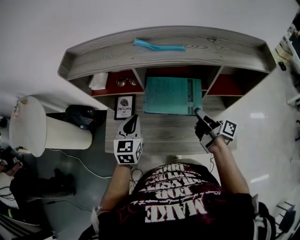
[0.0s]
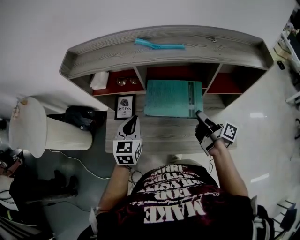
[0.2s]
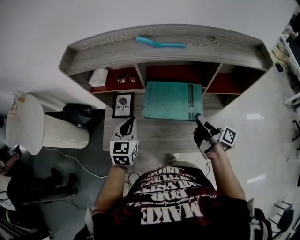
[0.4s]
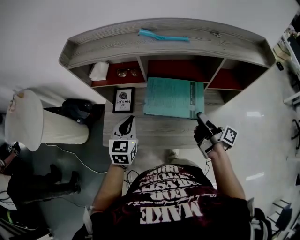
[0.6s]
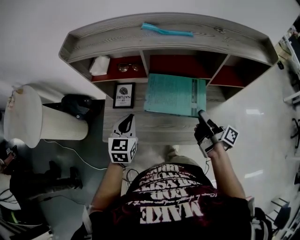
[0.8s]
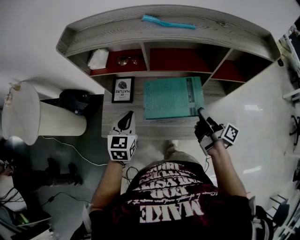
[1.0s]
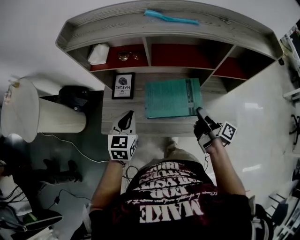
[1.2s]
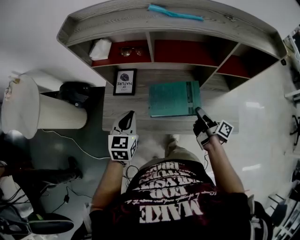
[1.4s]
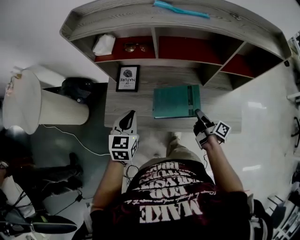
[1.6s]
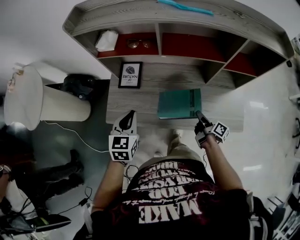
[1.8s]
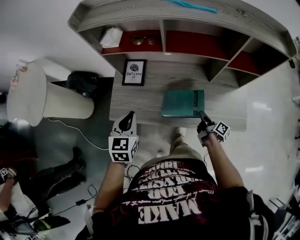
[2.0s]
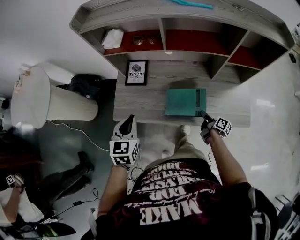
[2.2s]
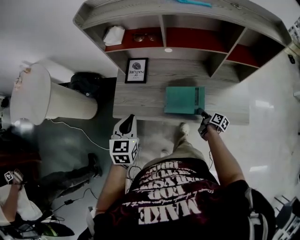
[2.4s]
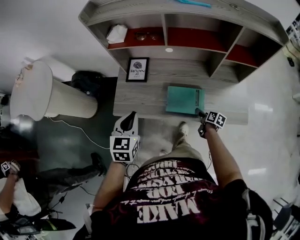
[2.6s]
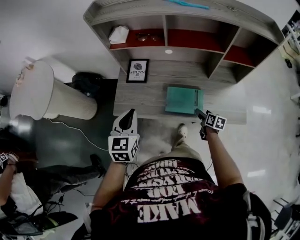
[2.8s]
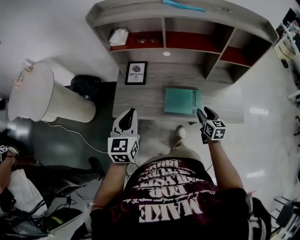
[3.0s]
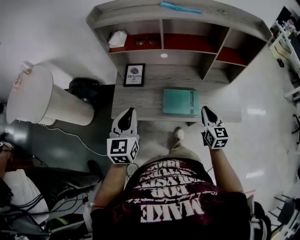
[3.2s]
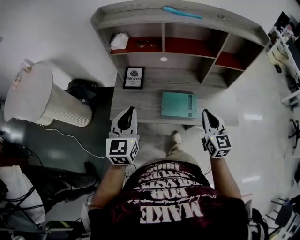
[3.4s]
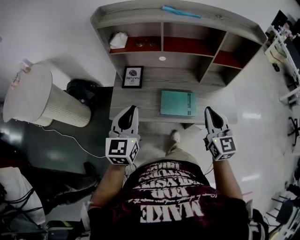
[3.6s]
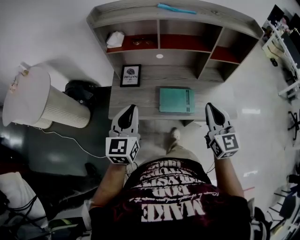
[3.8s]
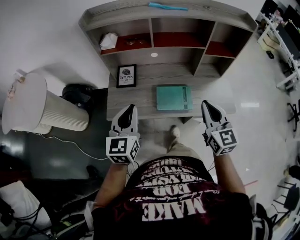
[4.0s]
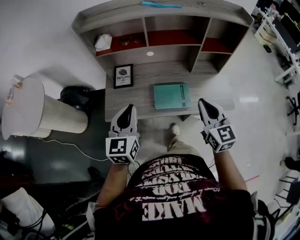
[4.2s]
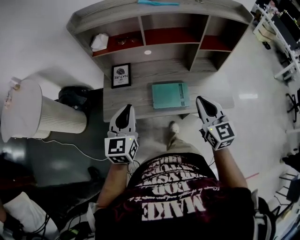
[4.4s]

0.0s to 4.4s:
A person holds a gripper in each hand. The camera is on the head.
0.0s to 1.4s: The right gripper shifts approximately 15 cm downward and backward. Meanwhile the left gripper travels backward, to the left and downward by some 10 cm.
1.4s to 3.0s: The right gripper moves backward, roughly 10 cm, goes downward and returns, about 20 cm each way, rotates around the line of its fingers by some 60 degrees, counterclockwise from behind, and opens and closes again; the left gripper travels backward, upward and to the left by about 15 cm.
3.0s to 4.4s: The right gripper goes approximately 20 cm upward, swivels some 30 degrees, and closes its fingers.

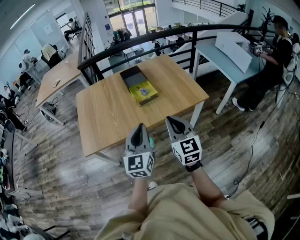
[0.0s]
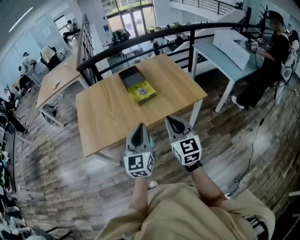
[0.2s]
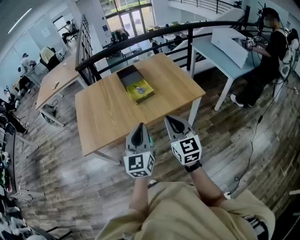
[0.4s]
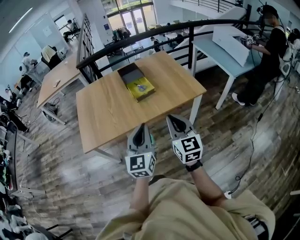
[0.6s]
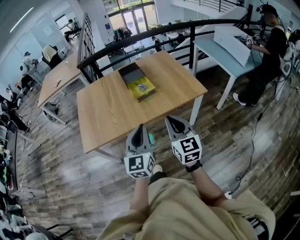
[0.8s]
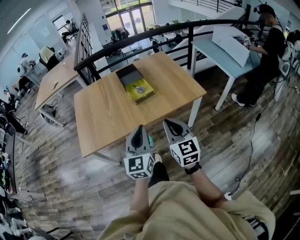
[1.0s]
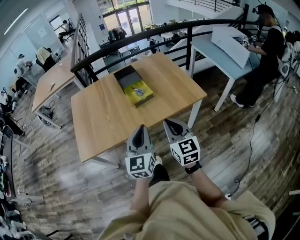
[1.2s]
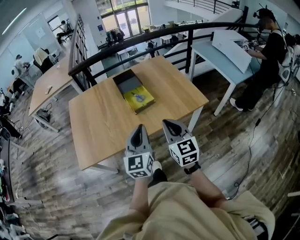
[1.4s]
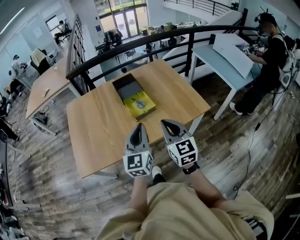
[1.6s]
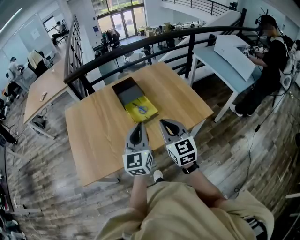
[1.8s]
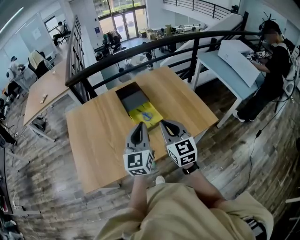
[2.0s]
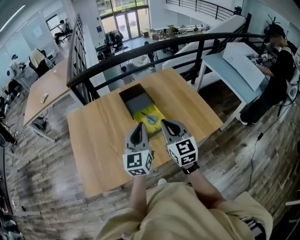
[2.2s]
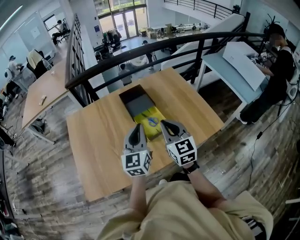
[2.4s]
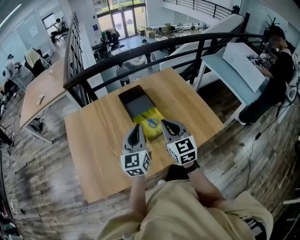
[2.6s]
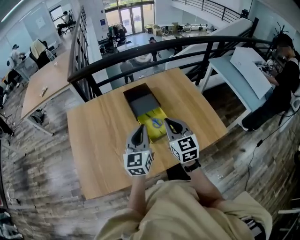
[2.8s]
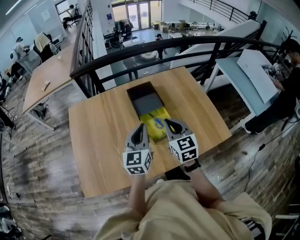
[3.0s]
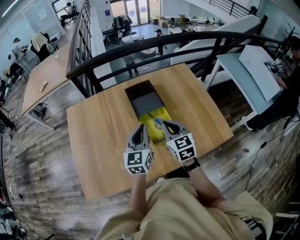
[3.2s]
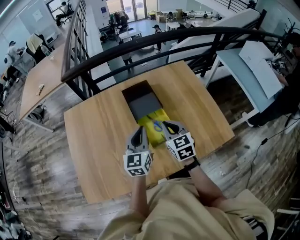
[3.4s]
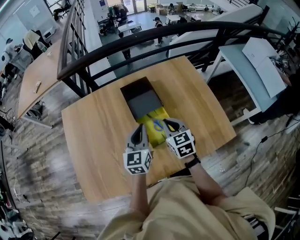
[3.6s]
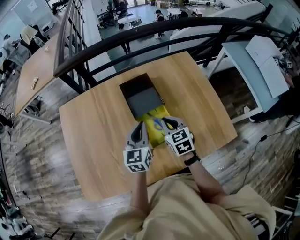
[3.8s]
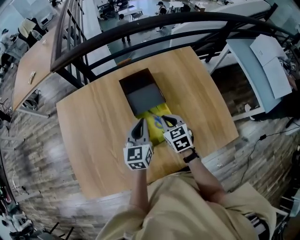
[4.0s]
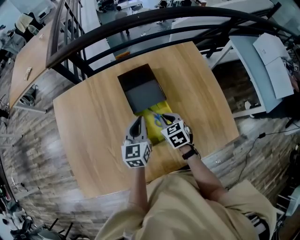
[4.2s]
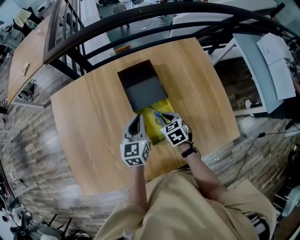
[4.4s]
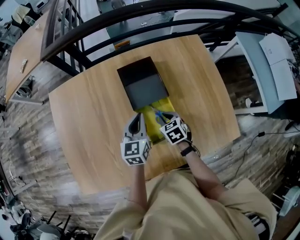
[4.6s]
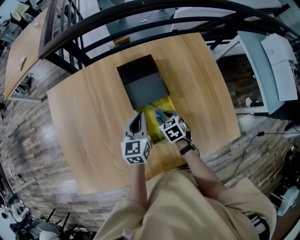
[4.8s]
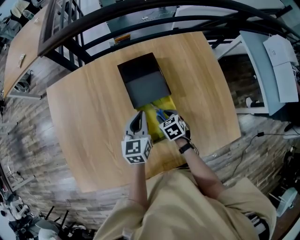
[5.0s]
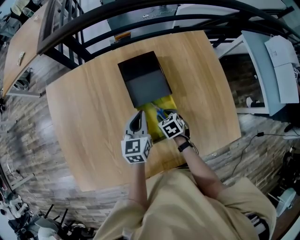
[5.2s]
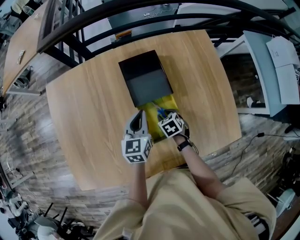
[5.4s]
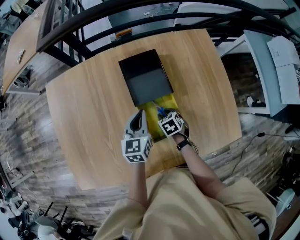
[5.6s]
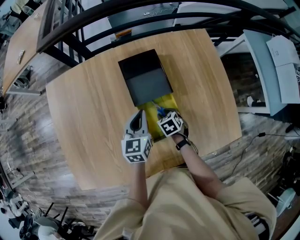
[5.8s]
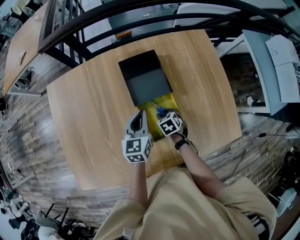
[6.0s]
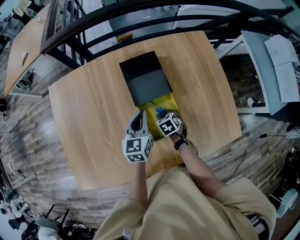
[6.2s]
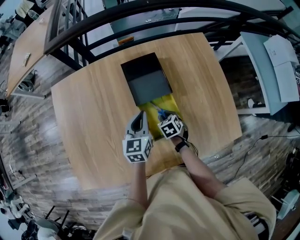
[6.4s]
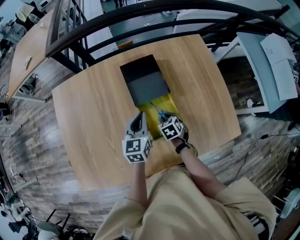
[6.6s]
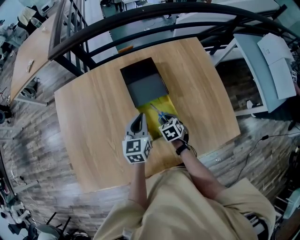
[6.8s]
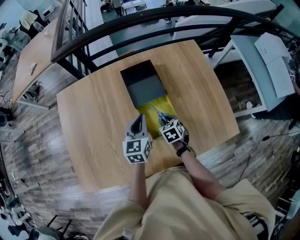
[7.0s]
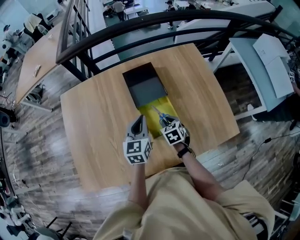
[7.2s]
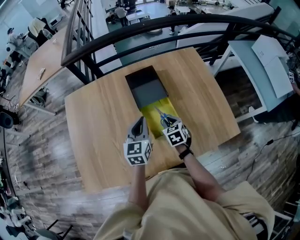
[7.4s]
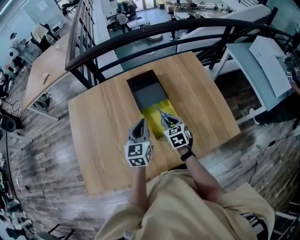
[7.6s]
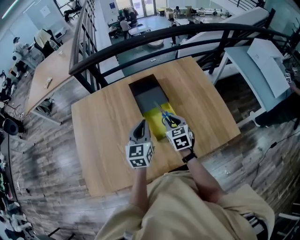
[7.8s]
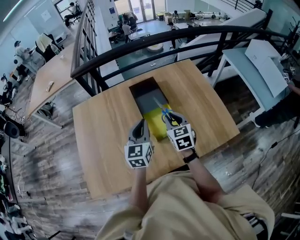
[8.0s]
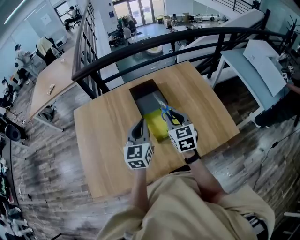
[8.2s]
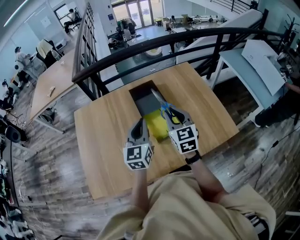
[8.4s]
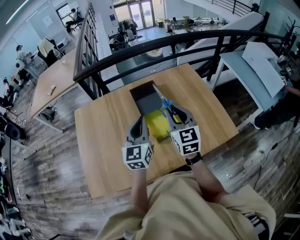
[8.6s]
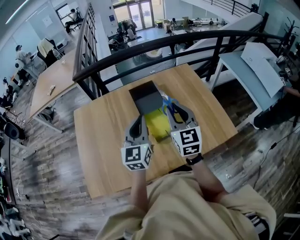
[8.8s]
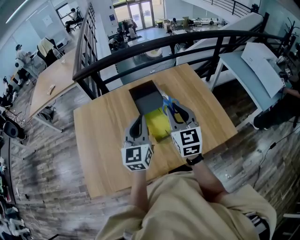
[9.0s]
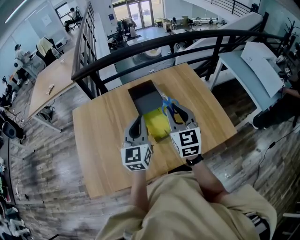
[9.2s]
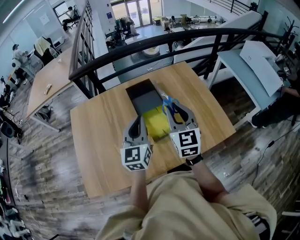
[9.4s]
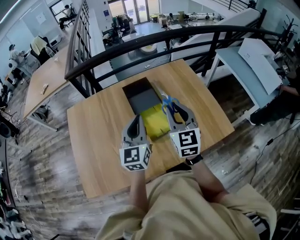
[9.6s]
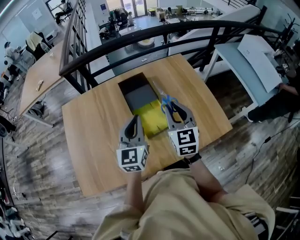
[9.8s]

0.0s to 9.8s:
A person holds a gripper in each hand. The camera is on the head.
0.0s to 1.4s: Both grippers travel together forward, approximately 10 cm.
1.4s to 2.8s: The two grippers go about 30 cm forward.
2.8s to 4.2s: The right gripper travels downward and forward by some 30 cm, and tips its fingers downward by approximately 40 degrees. The left gripper is displaced forward and downward by about 25 cm.
4.2s to 5.6s: The right gripper travels downward by approximately 15 cm, swivels some 20 degrees, and opens, while the left gripper moves downward, approximately 5 cm.
5.6s to 7.0s: The left gripper heads backward, covering about 5 cm. The right gripper shifts roughly 5 cm upward.
7.0s to 8.4s: The left gripper goes roughly 15 cm upward and backward, while the right gripper moves upward, roughly 30 cm, and points its fingers approximately 40 degrees further upward.

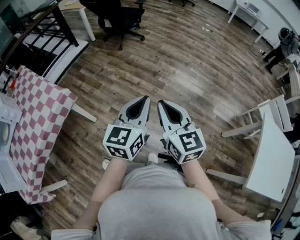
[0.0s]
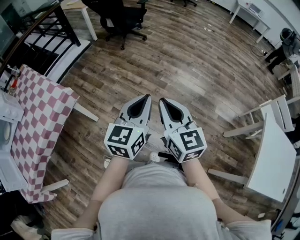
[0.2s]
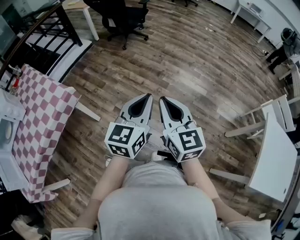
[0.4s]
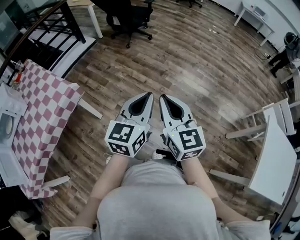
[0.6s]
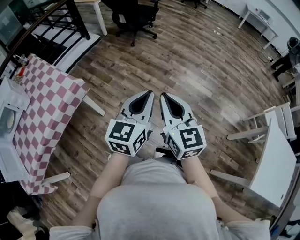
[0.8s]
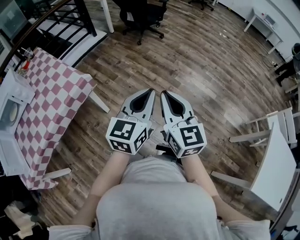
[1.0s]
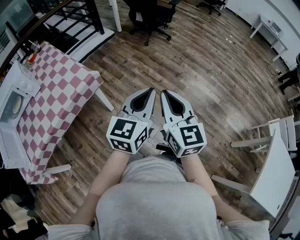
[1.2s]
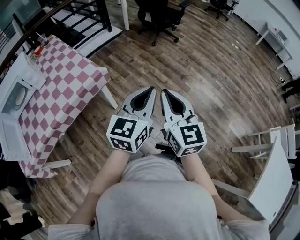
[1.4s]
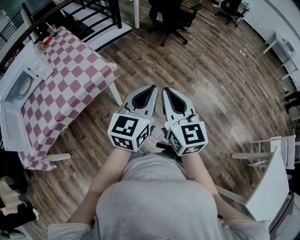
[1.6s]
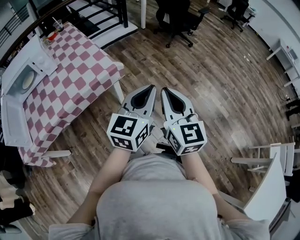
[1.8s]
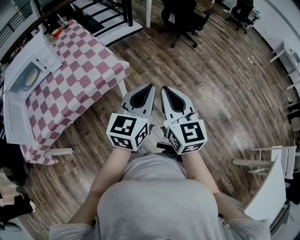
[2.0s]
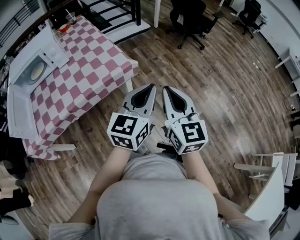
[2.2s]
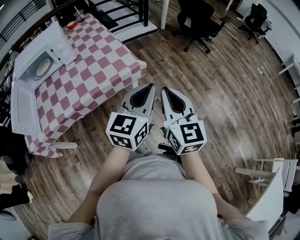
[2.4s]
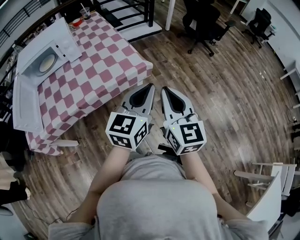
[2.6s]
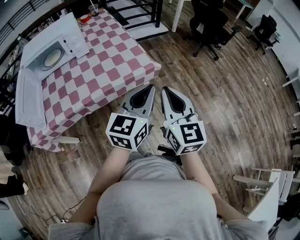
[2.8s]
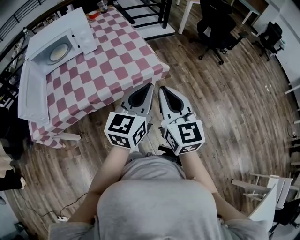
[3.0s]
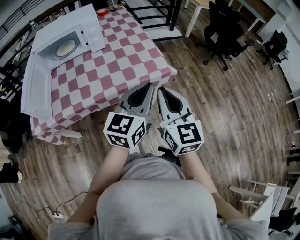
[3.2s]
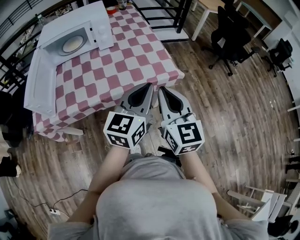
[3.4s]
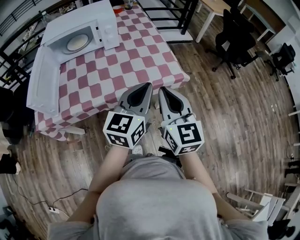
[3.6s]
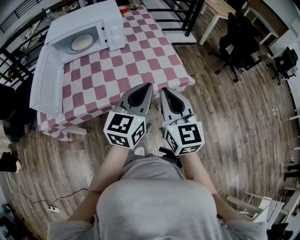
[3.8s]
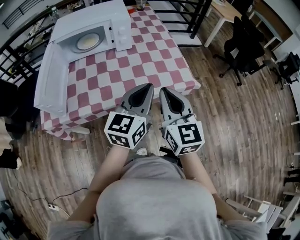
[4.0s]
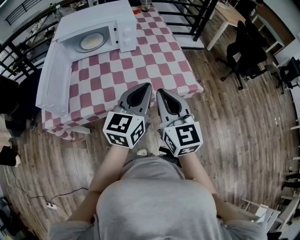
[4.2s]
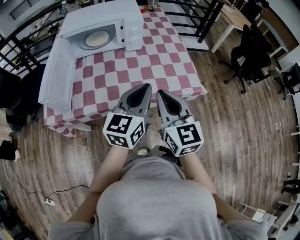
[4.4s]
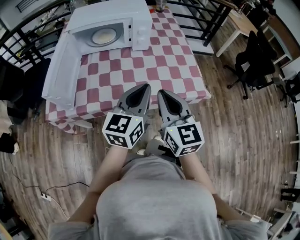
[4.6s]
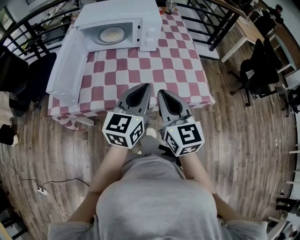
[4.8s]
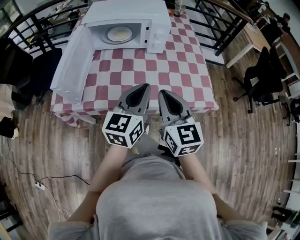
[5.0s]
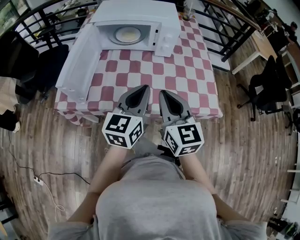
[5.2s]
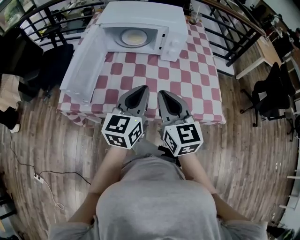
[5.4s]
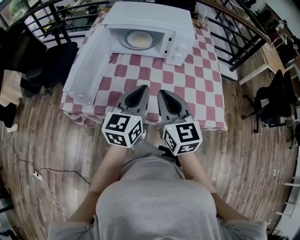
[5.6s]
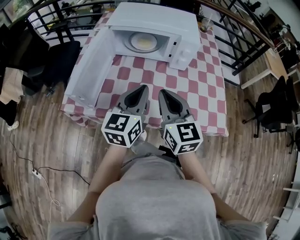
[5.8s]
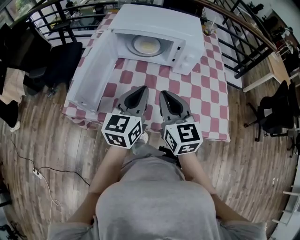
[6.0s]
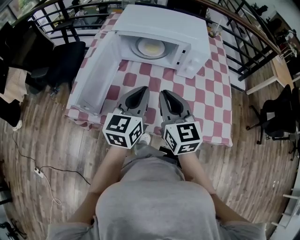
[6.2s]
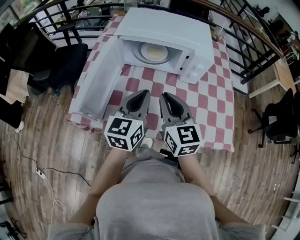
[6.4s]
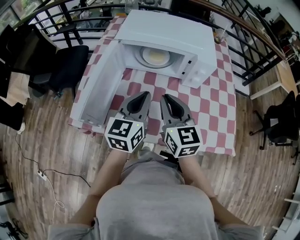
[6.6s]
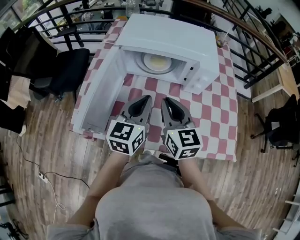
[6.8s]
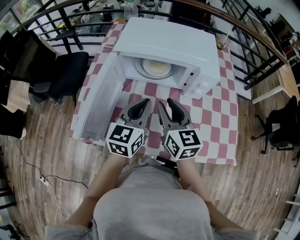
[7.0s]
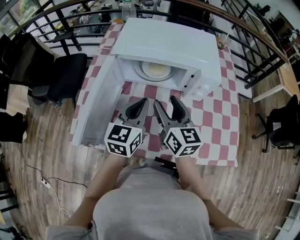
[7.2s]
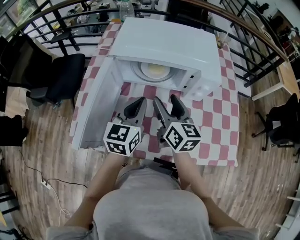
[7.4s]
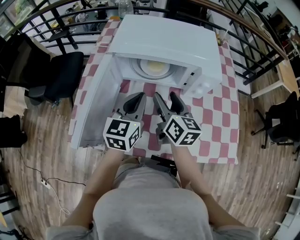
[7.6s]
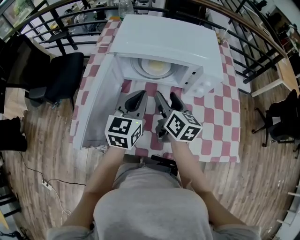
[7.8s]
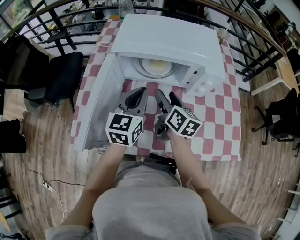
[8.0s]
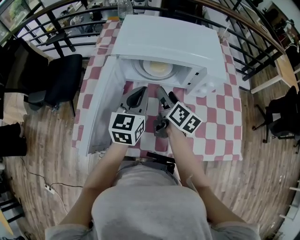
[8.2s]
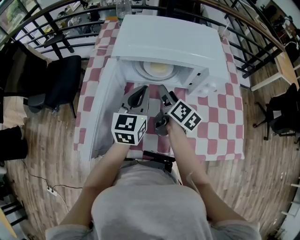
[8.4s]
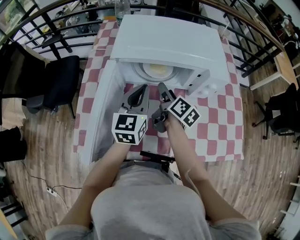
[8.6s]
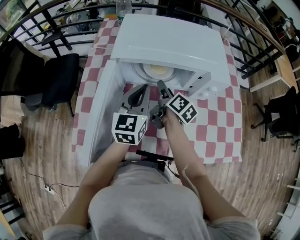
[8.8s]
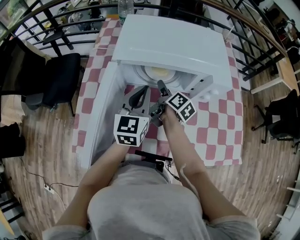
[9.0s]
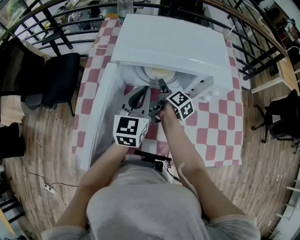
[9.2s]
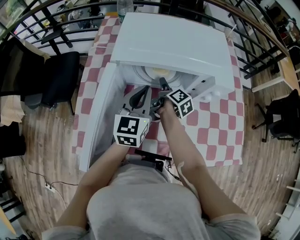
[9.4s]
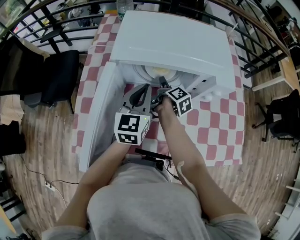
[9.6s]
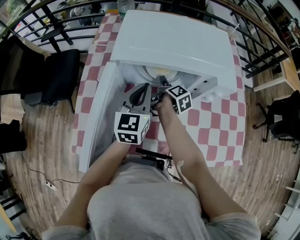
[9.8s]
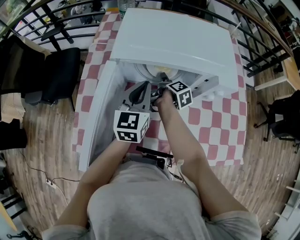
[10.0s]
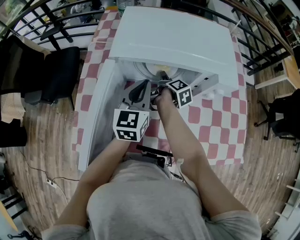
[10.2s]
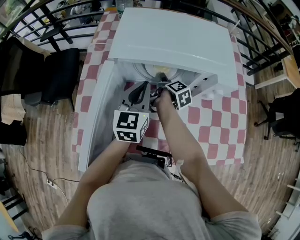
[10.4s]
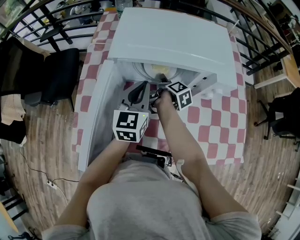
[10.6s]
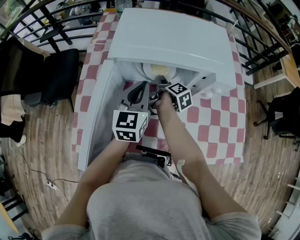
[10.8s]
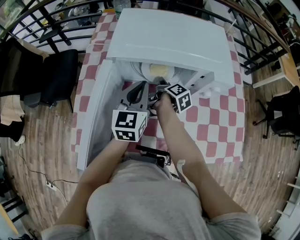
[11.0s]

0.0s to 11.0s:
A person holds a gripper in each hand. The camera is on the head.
0.0s to 1.6s: The grippers both shift to the left by approximately 20 cm.
1.6s to 3.2s: The two grippers go approximately 30 cm to the left. The right gripper turns by approximately 20 degrees; the left gripper changes its angle by some 20 degrees.
3.2s to 4.8s: The right gripper moves to the left and forward, some 20 cm. Meanwhile the left gripper travels to the left by roughly 20 cm.
4.8s to 6.2s: The grippers both shift forward and to the left by roughly 20 cm.
6.2s to 7.8s: The left gripper moves forward, some 15 cm. Meanwhile the right gripper shifts about 20 cm forward and downward, changes its angle by some 30 degrees, and opens up.
7.8s to 9.4s: The right gripper travels downward and forward by approximately 20 cm, and rotates around the line of its fingers by about 50 degrees, clockwise from behind. Meanwhile the left gripper heads forward, covering about 5 cm.
9.4s to 11.0s: The right gripper closes its fingers.
